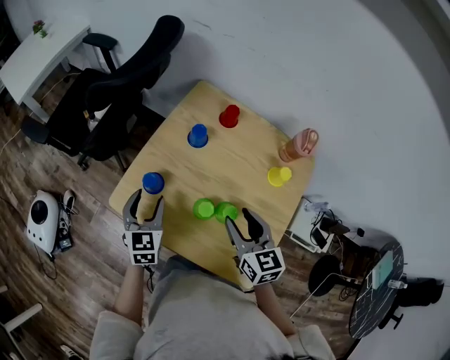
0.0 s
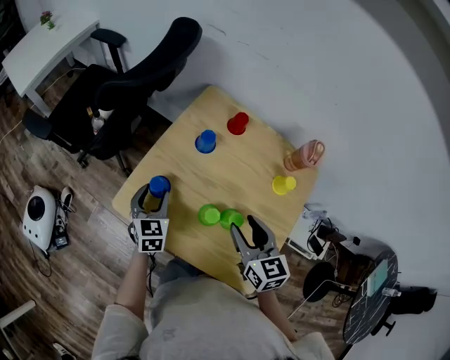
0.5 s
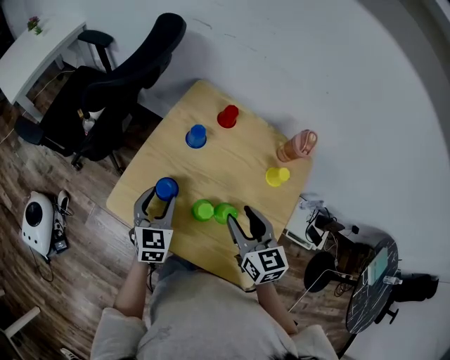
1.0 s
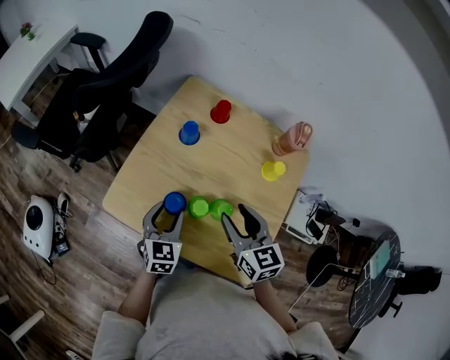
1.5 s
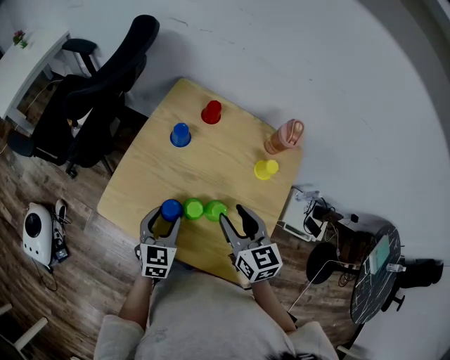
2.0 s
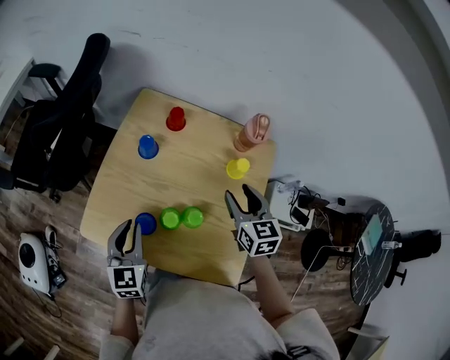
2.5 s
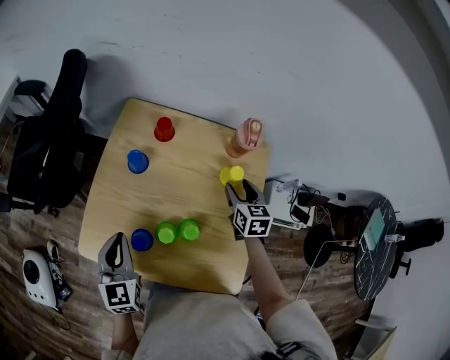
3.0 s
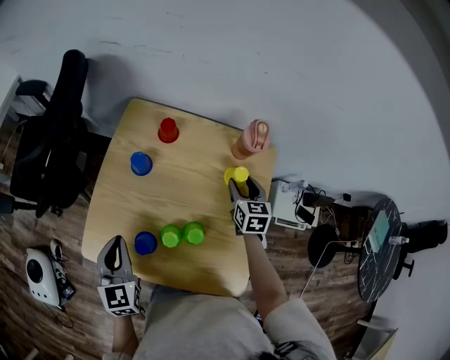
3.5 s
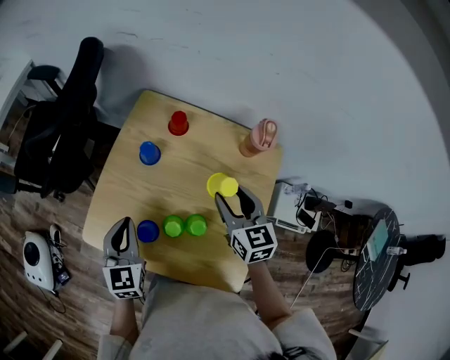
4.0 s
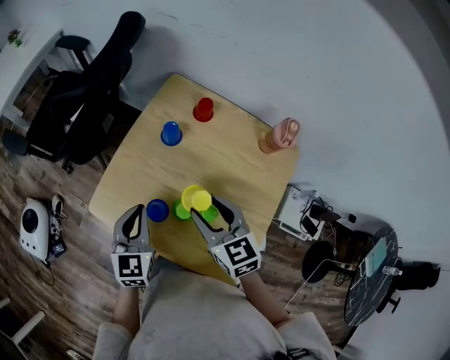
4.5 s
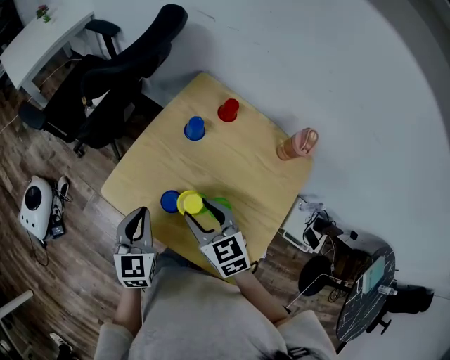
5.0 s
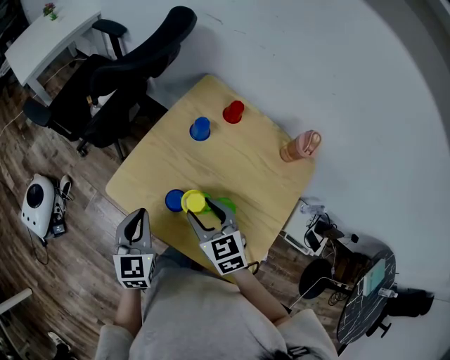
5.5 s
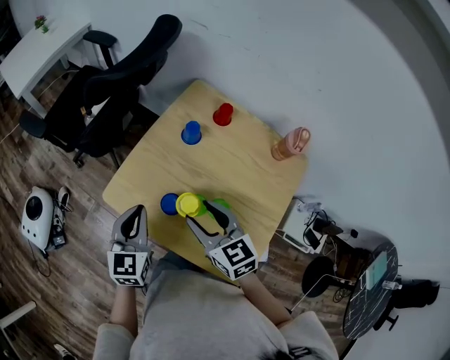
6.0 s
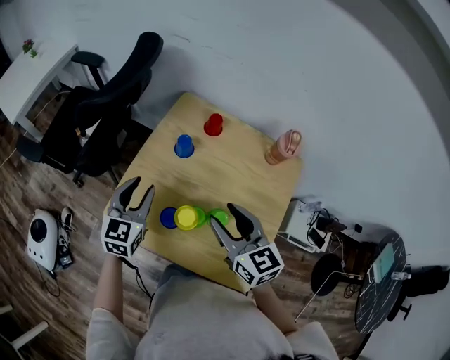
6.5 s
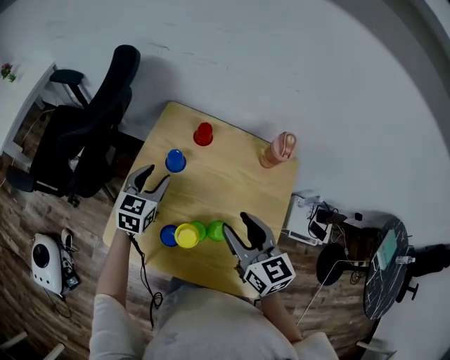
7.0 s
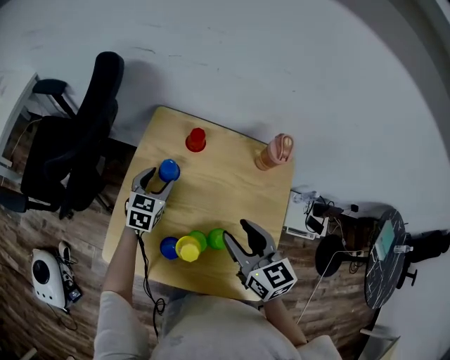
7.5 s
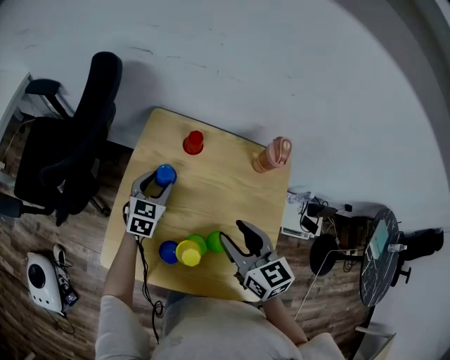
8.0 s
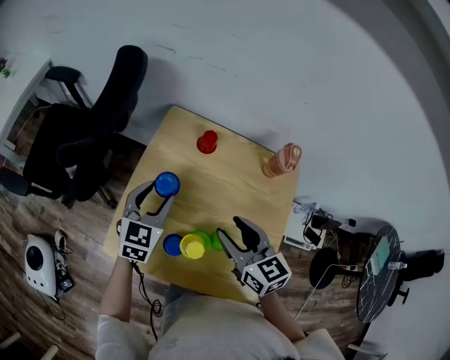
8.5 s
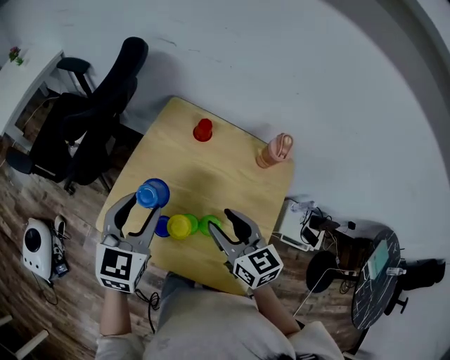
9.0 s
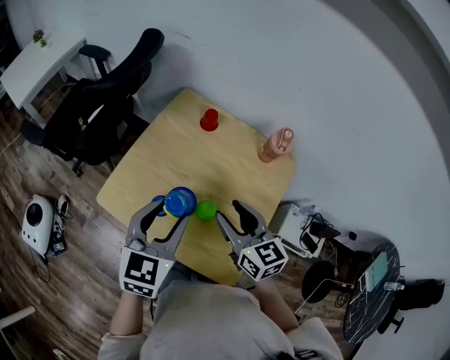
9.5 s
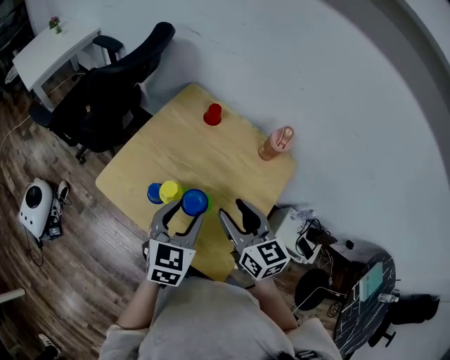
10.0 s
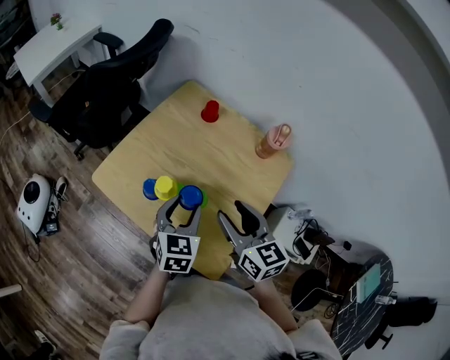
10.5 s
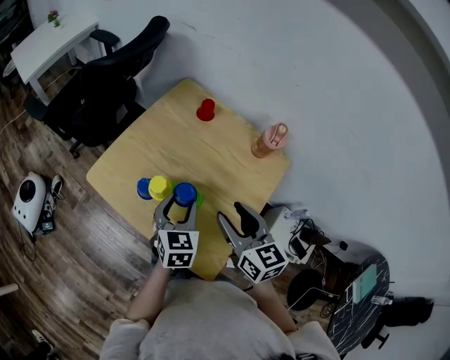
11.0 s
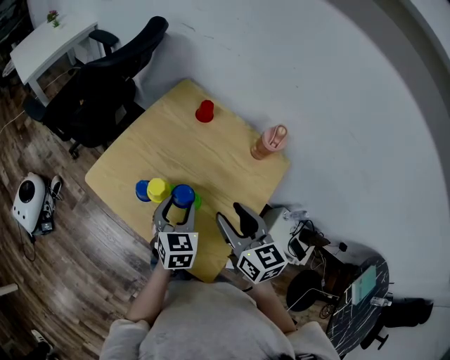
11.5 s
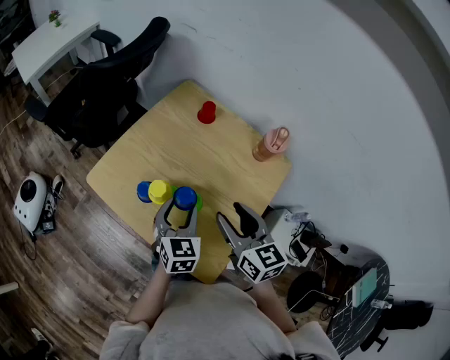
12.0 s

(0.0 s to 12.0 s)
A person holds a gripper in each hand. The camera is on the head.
0.0 s - 2.0 s: The left gripper goes approximately 10 cm to the right.
2.0 s - 4.0 s: The right gripper travels forward and to the right by some 10 cm, while the left gripper shifts approximately 10 cm upward and forward, and closes.
4.0 s - 6.0 s: The left gripper heads to the left and backward, covering roughly 10 cm. Meanwhile the right gripper moves to the left, approximately 20 cm, and swivels about 30 degrees.
6.0 s - 8.0 s: The left gripper changes place by about 30 cm, changes its angle by some 30 degrees, and opens its fingers, while the right gripper shifts by approximately 15 cm, and turns by some 30 degrees.
8.0 s - 10.0 s: The right gripper shifts some 10 cm backward and to the right; the left gripper heads backward and upward, covering some 30 cm.
10.0 s - 12.0 s: The left gripper travels downward by about 10 cm.

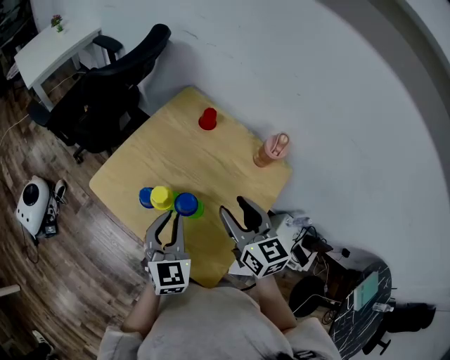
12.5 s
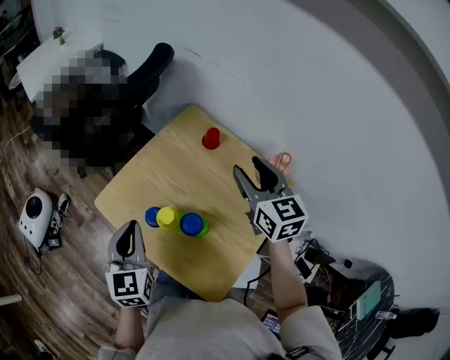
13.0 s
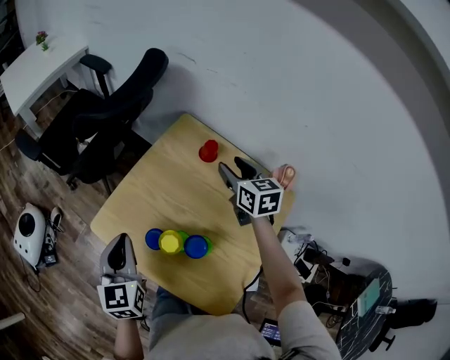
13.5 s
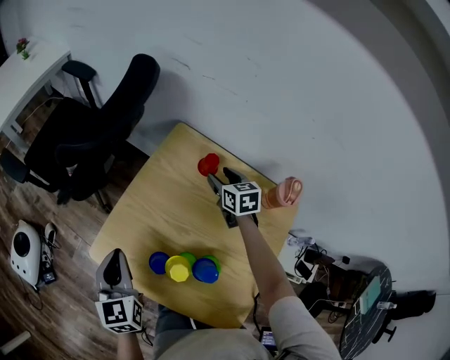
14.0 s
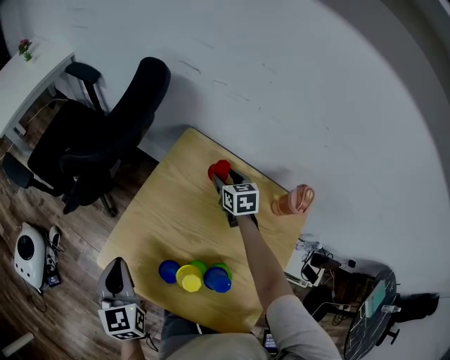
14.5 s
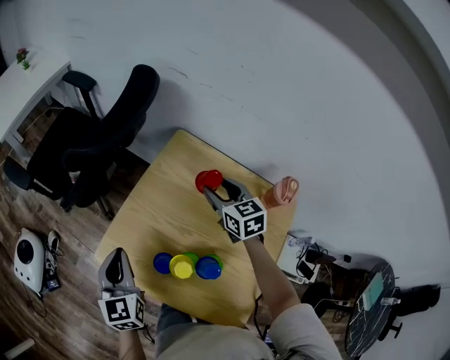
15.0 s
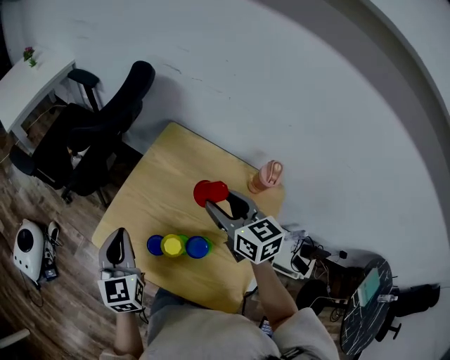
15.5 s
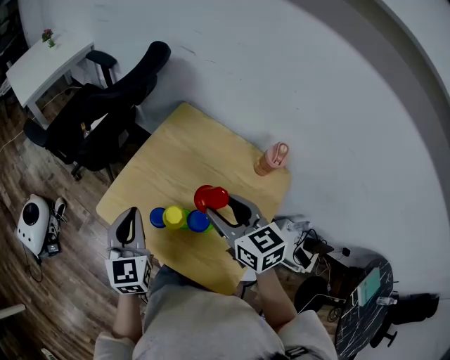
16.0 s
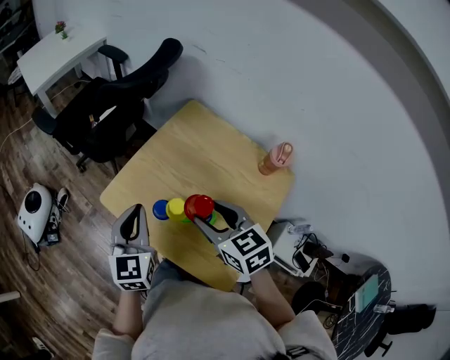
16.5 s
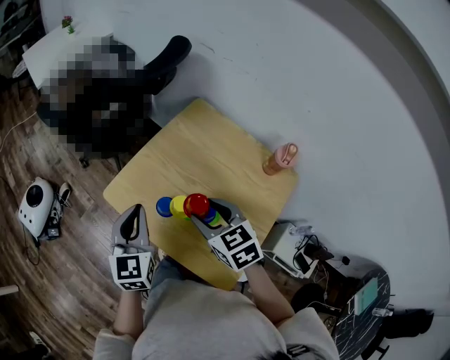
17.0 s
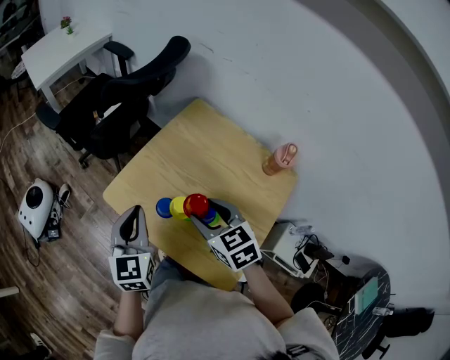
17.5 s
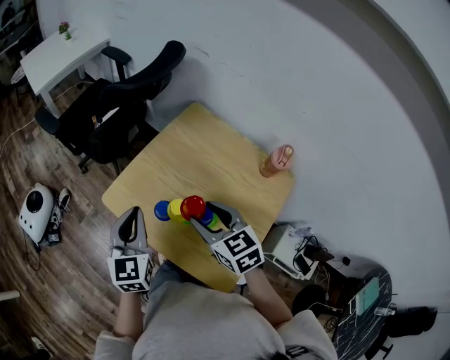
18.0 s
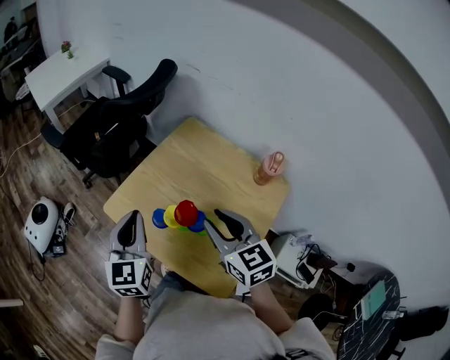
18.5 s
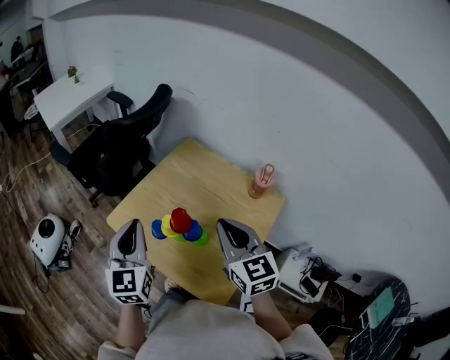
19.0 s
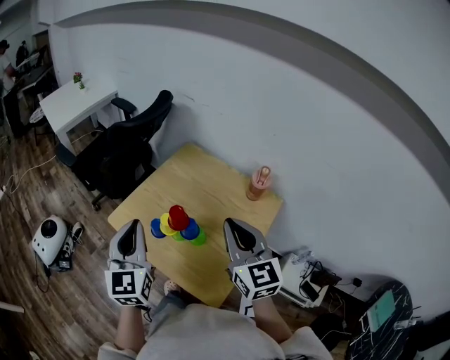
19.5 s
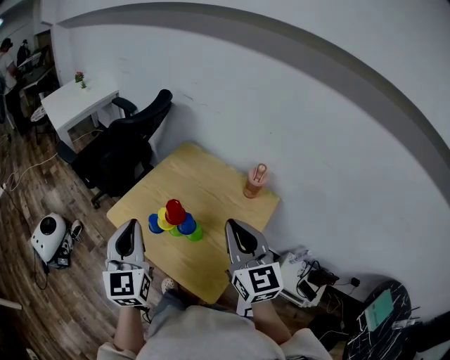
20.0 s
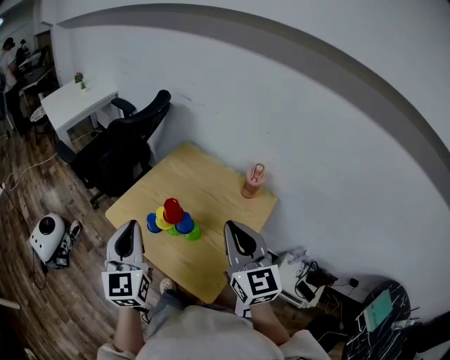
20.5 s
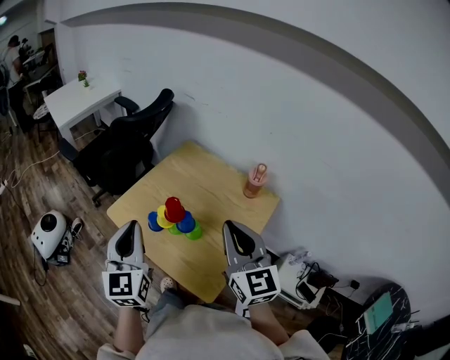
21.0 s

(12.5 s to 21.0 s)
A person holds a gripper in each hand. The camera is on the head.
12.5 s - 14.5 s: The right gripper is displaced forward and downward by about 40 cm, and rotates about 30 degrees; the left gripper goes roughly 25 cm to the left and forward.
14.5 s - 16.5 s: The right gripper heads backward, upward and to the left, covering roughly 40 cm, and turns by some 30 degrees. Meanwhile the left gripper travels backward, upward and to the right by some 15 cm.
16.5 s - 19.0 s: The right gripper heads upward, to the right and backward, covering some 10 cm, rotates roughly 30 degrees, and closes; the left gripper heads upward, covering roughly 10 cm.
19.0 s - 21.0 s: The left gripper moves backward, about 5 cm; the right gripper is displaced backward and upward by approximately 10 cm.

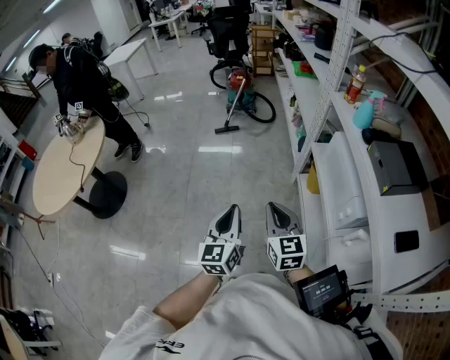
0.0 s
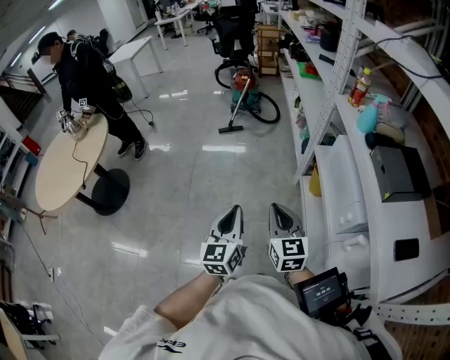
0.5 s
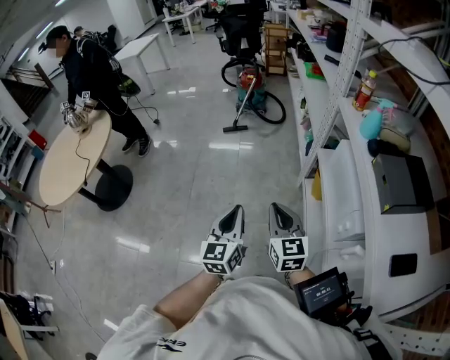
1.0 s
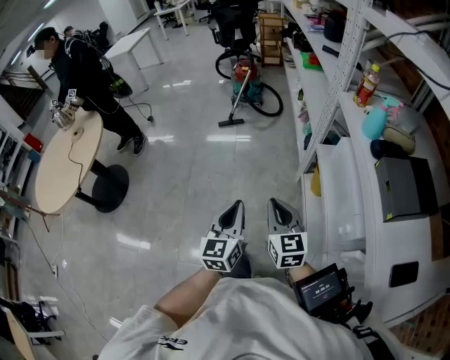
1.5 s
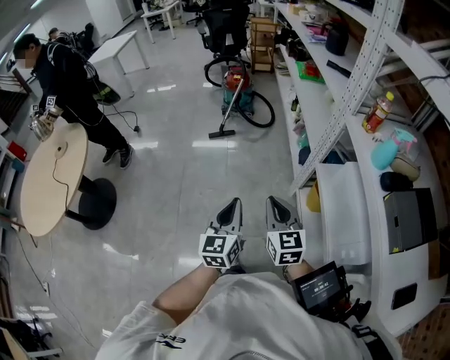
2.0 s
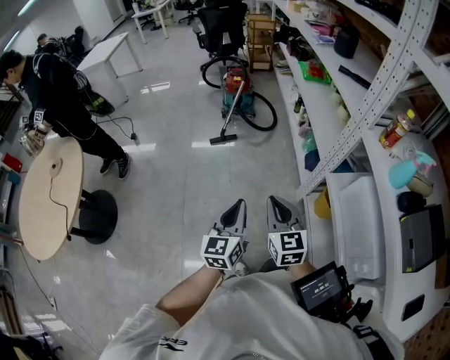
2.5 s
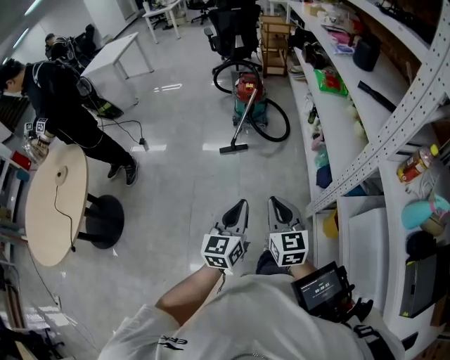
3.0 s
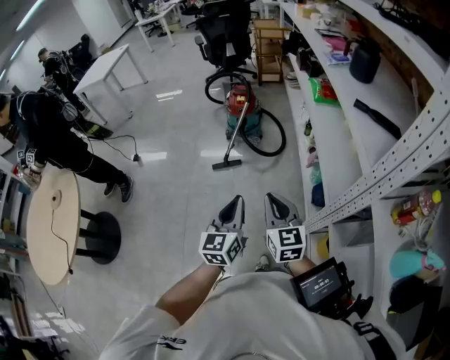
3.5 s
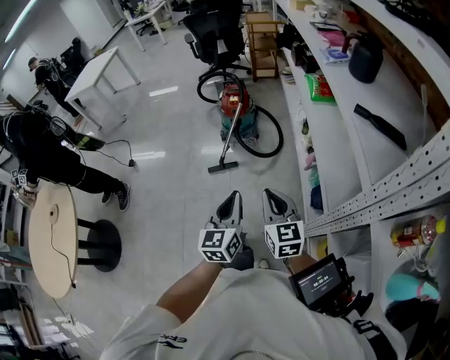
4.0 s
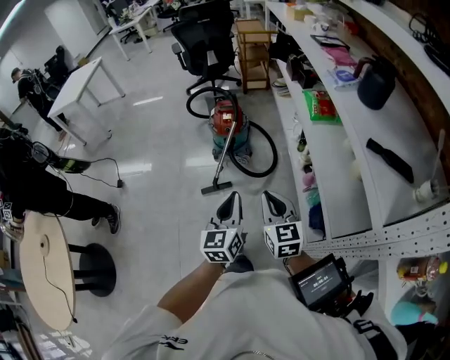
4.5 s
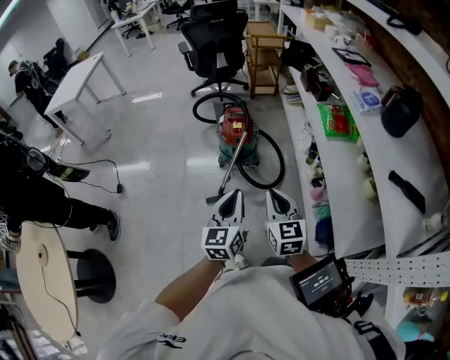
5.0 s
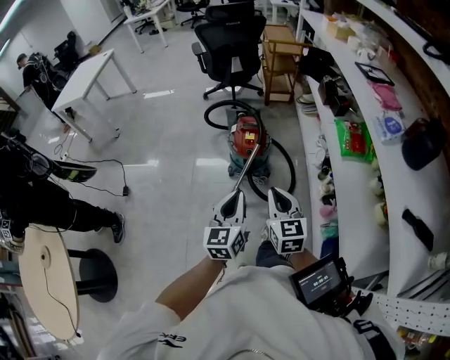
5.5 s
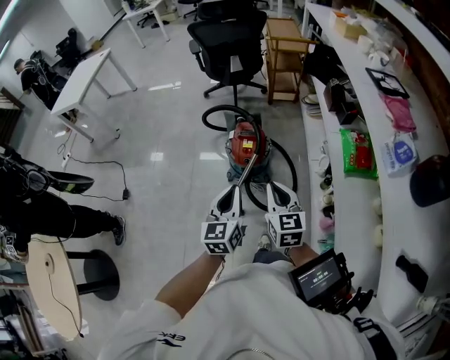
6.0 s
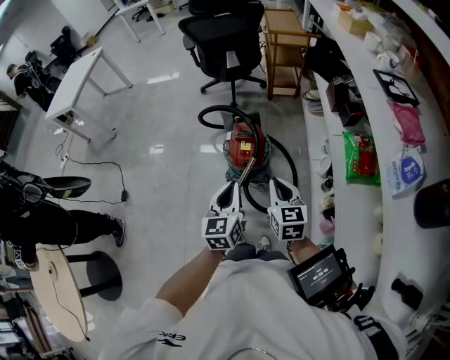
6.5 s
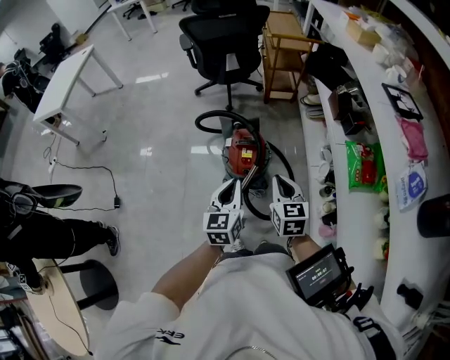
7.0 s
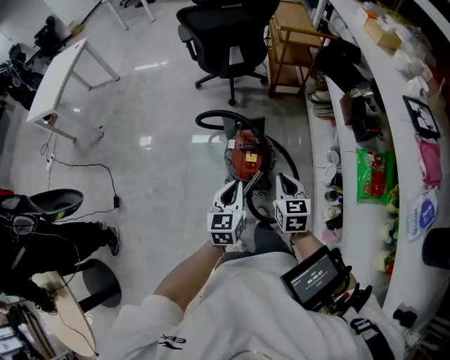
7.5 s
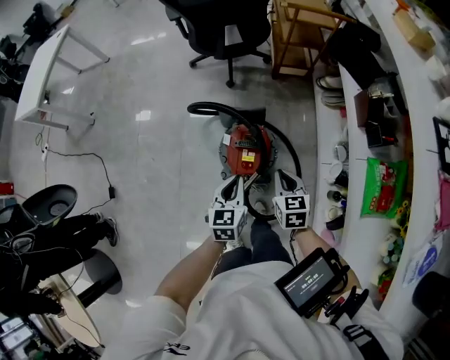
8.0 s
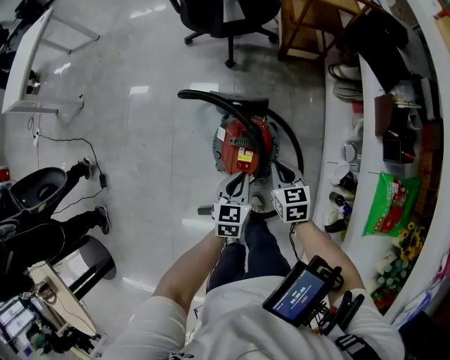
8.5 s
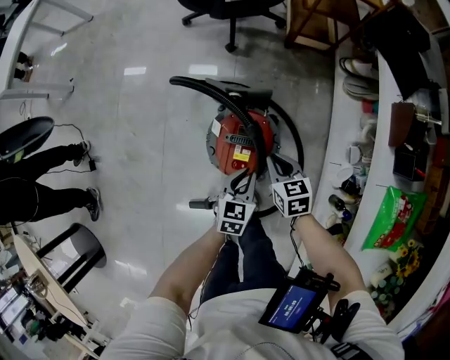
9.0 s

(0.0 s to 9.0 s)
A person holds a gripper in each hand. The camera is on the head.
0.0 s - 2.0 s: The grippers both shift forward by about 20 cm.
2.0 s - 4.5 s: The pair of grippers is taken forward, roughly 60 cm.
4.5 s - 7.0 s: Both grippers are carried forward, roughly 50 cm.
7.0 s - 9.0 s: Both grippers move downward and forward, some 40 cm. The right gripper changes its angle by some 30 degrees, while the left gripper rotates roughly 30 degrees.
